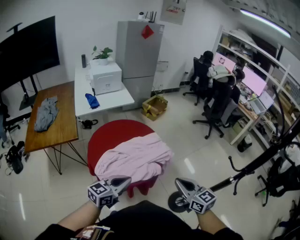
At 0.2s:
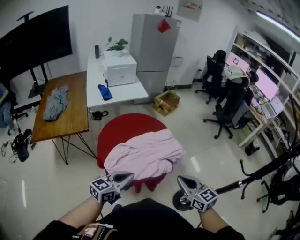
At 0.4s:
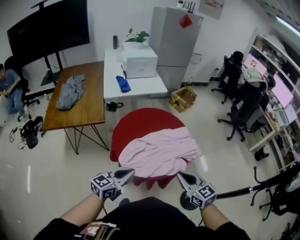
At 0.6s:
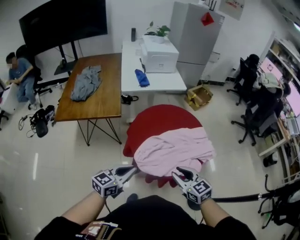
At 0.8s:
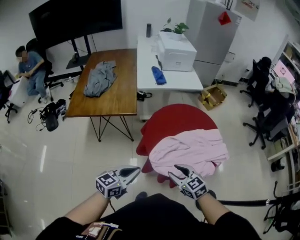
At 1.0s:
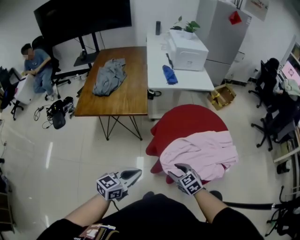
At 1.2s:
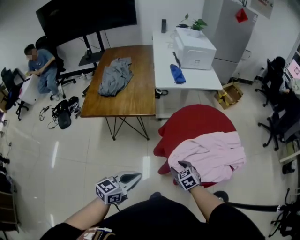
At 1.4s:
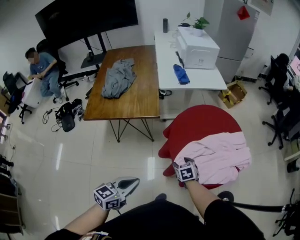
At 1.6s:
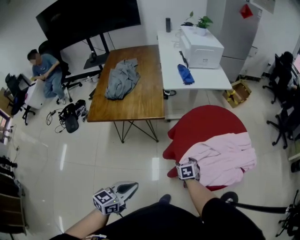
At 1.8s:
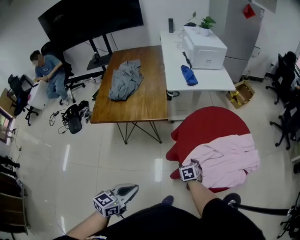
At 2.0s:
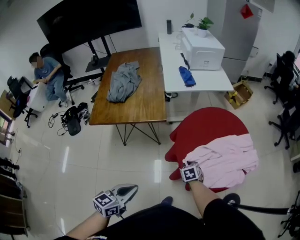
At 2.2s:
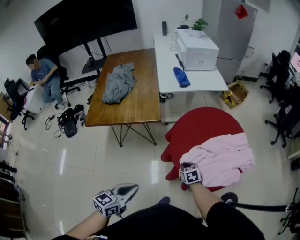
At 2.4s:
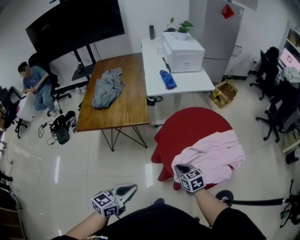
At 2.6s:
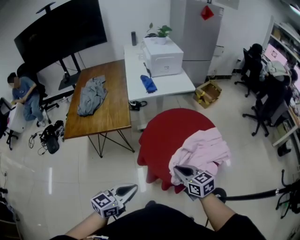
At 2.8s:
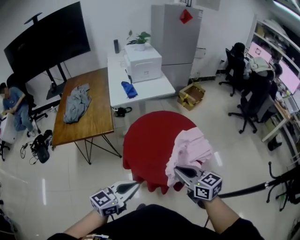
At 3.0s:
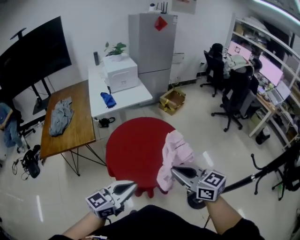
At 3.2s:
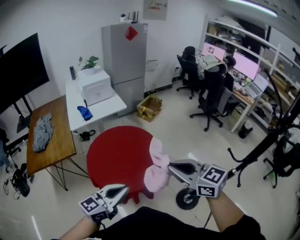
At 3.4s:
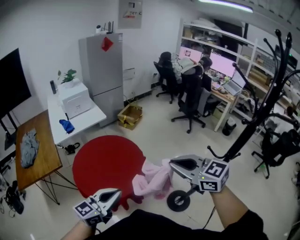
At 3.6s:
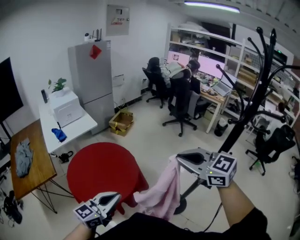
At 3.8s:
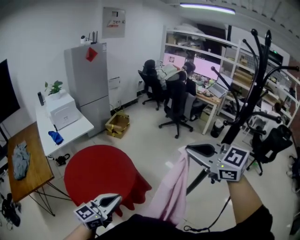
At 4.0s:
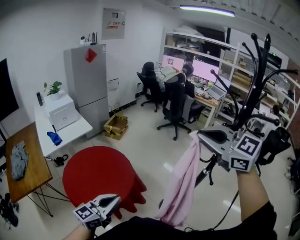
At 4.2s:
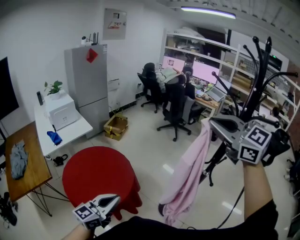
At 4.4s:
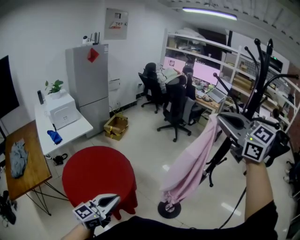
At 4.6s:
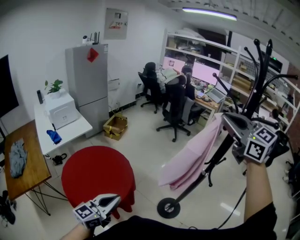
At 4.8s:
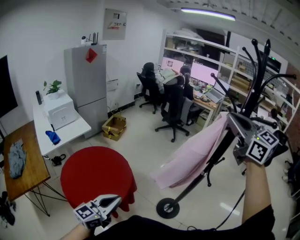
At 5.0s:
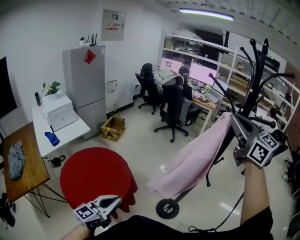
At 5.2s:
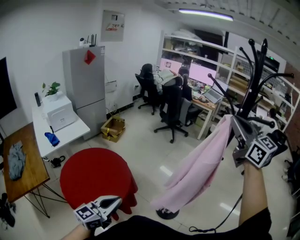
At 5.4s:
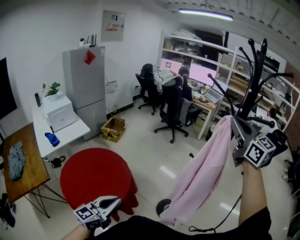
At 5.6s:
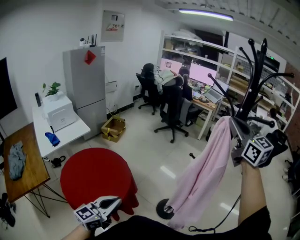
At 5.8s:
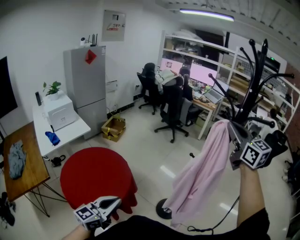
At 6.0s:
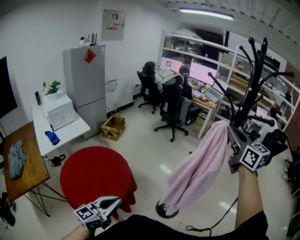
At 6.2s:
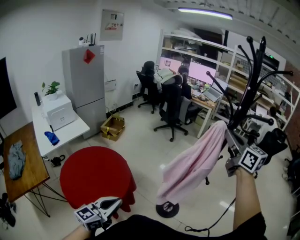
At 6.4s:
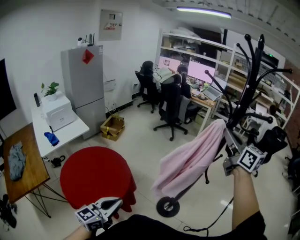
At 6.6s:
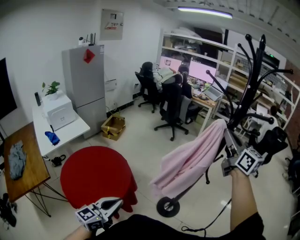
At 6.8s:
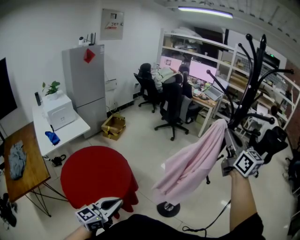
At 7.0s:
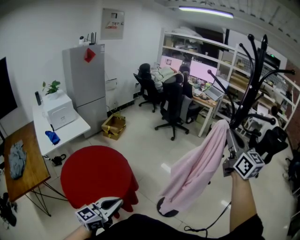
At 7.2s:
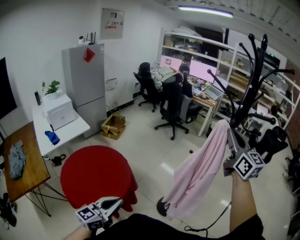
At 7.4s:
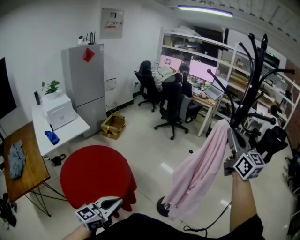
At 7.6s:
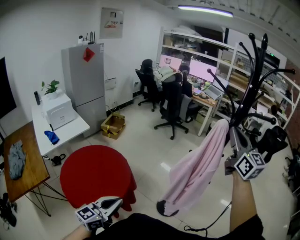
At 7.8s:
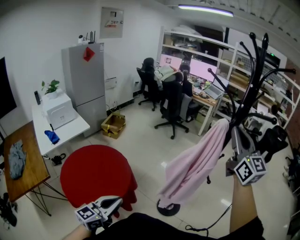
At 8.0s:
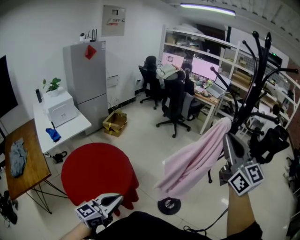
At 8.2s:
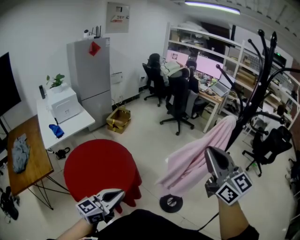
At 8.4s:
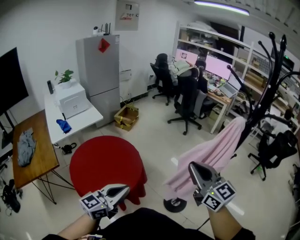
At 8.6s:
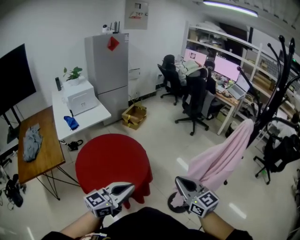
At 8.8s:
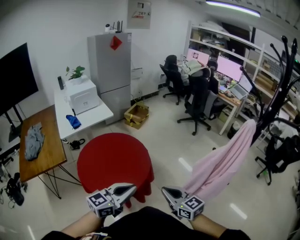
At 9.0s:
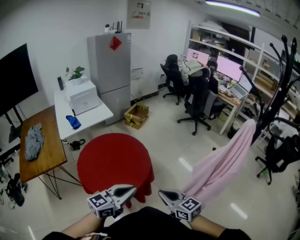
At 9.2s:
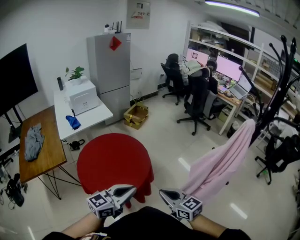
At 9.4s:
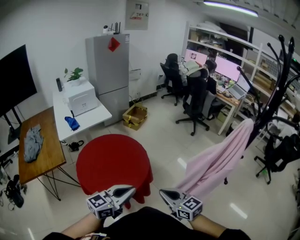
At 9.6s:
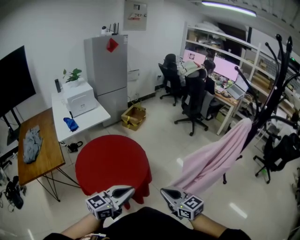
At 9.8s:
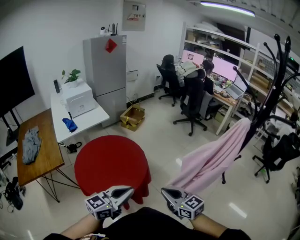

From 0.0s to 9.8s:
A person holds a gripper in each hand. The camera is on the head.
From 0.0s to 1.4s: The right gripper heads to the left, downward and forward, covering about 50 cm, tilts its fingers some 40 degrees downward, and opens its fingers; the left gripper travels to the left by roughly 35 cm, and changes its angle by some 30 degrees.
From 1.4s to 2.8s: The right gripper is displaced upward and to the right by some 35 cm, tips its fingers upward by roughly 30 degrees, and closes its fingers; the left gripper is displaced to the right and upward by about 20 cm, and changes its angle by approximately 20 degrees.
From 2.8s to 4.2s: The left gripper changes place by roughly 25 cm, and turns by some 30 degrees, while the right gripper changes place by approximately 50 cm, and changes its angle by some 50 degrees.
From 4.2s to 5.6s: The right gripper travels to the right by roughly 15 cm, and swivels some 30 degrees.
From 5.6s to 7.0s: The right gripper is displaced downward by roughly 5 cm.
From 7.0s to 8.4s: The right gripper moves to the left, downward and backward, roughly 25 cm, and turns by about 30 degrees.
From 8.4s to 9.8s: The right gripper is displaced downward and to the left by approximately 20 cm, and rotates approximately 20 degrees.

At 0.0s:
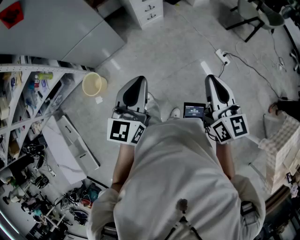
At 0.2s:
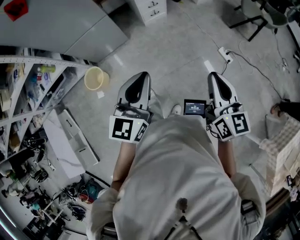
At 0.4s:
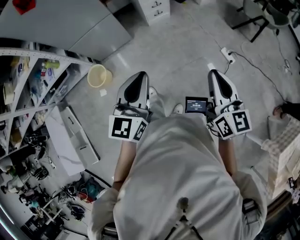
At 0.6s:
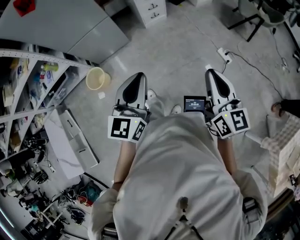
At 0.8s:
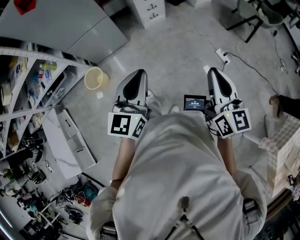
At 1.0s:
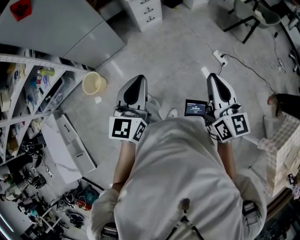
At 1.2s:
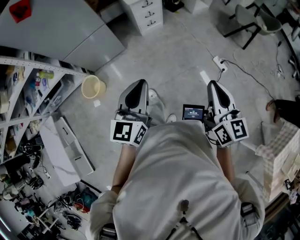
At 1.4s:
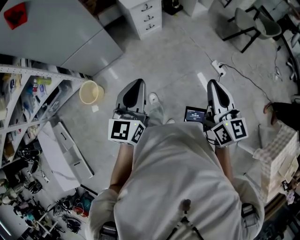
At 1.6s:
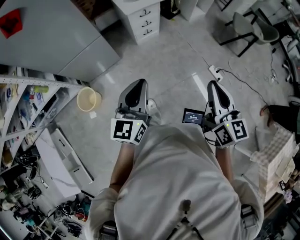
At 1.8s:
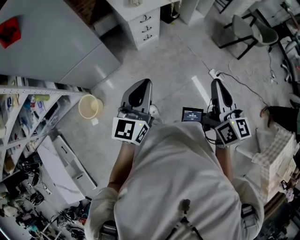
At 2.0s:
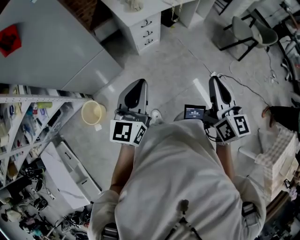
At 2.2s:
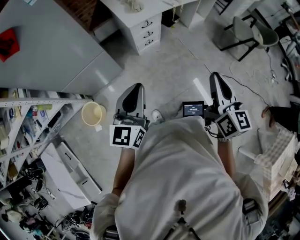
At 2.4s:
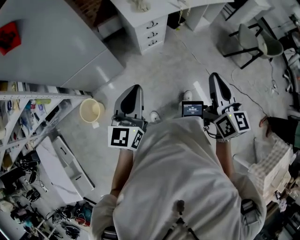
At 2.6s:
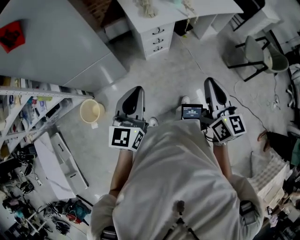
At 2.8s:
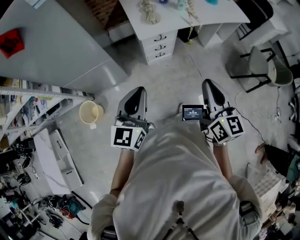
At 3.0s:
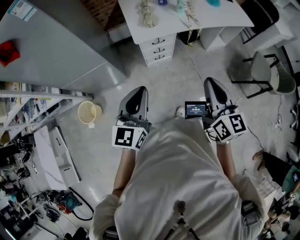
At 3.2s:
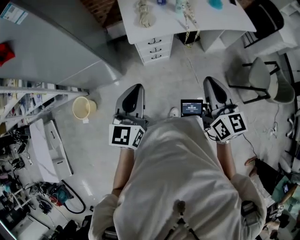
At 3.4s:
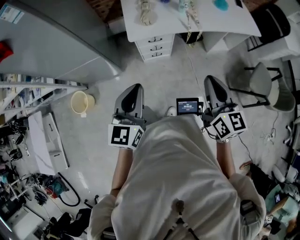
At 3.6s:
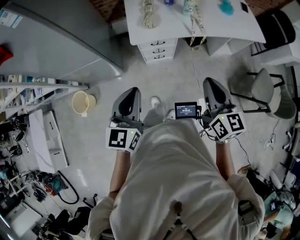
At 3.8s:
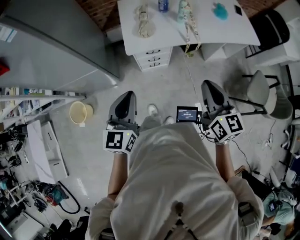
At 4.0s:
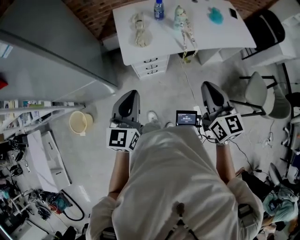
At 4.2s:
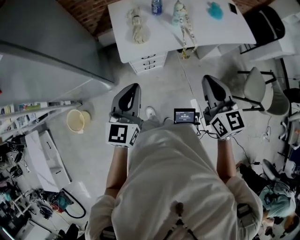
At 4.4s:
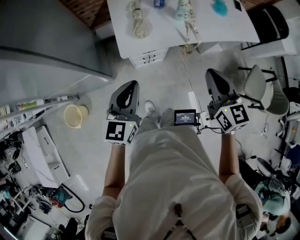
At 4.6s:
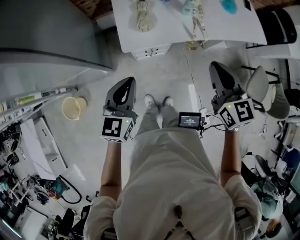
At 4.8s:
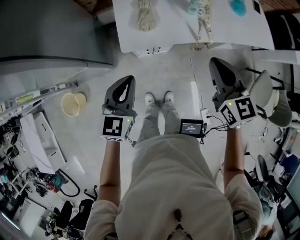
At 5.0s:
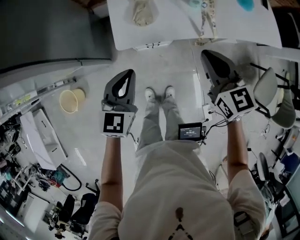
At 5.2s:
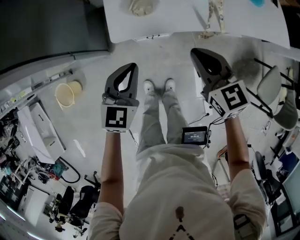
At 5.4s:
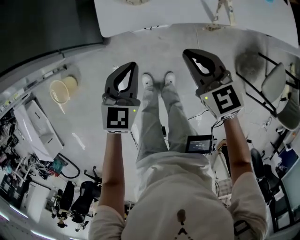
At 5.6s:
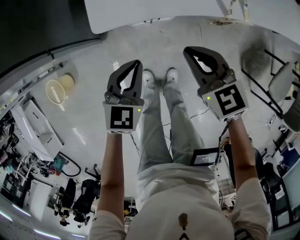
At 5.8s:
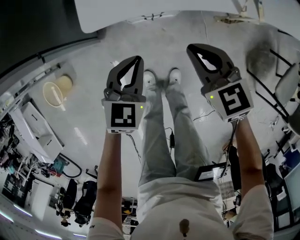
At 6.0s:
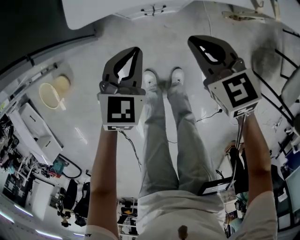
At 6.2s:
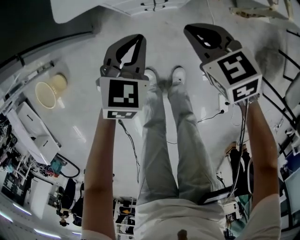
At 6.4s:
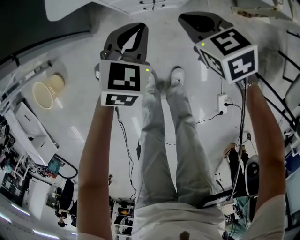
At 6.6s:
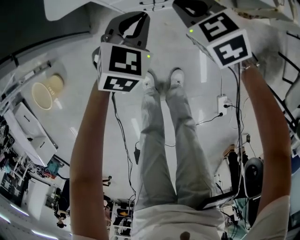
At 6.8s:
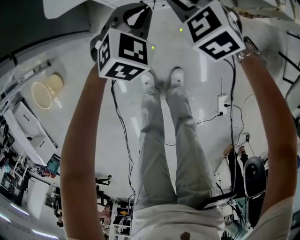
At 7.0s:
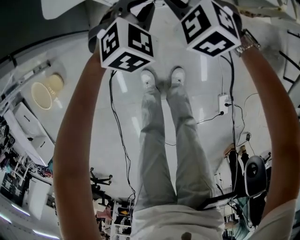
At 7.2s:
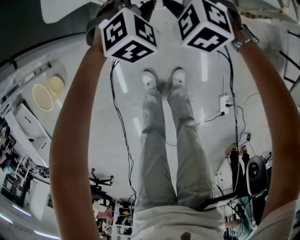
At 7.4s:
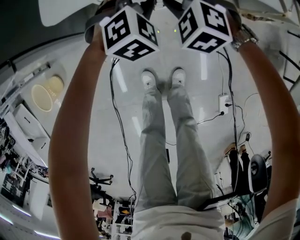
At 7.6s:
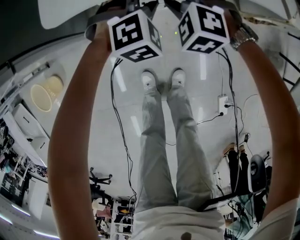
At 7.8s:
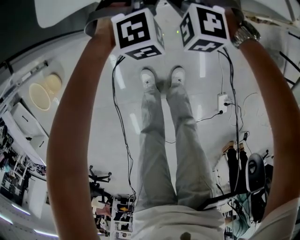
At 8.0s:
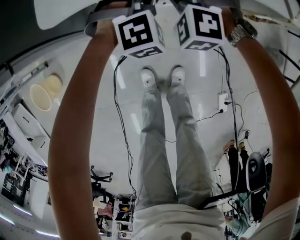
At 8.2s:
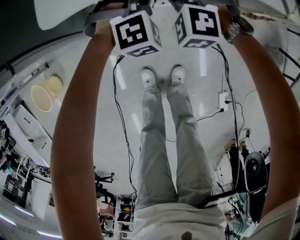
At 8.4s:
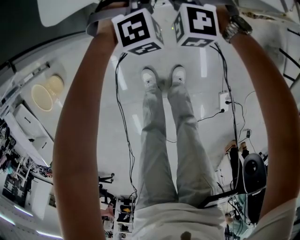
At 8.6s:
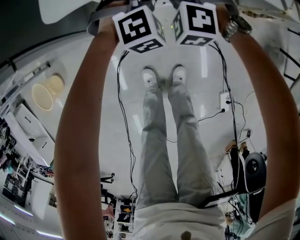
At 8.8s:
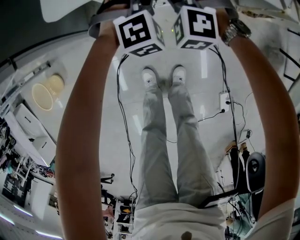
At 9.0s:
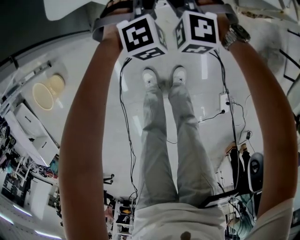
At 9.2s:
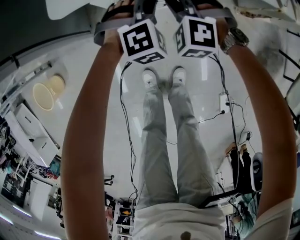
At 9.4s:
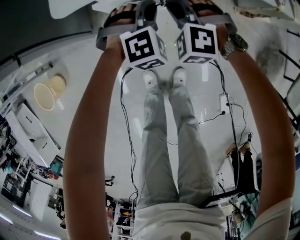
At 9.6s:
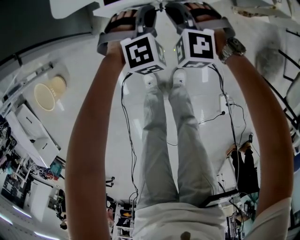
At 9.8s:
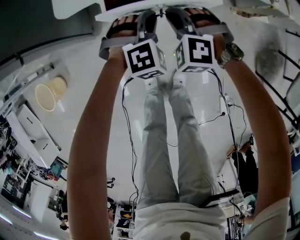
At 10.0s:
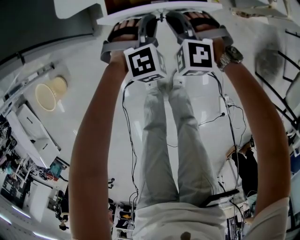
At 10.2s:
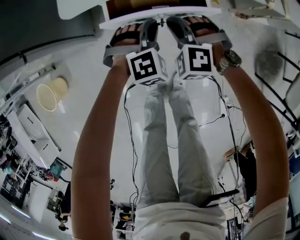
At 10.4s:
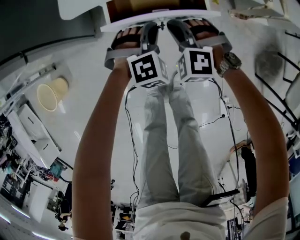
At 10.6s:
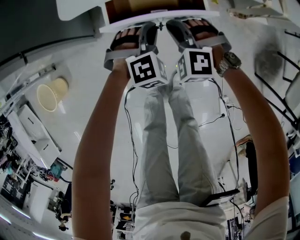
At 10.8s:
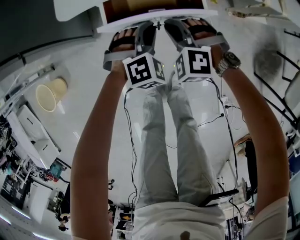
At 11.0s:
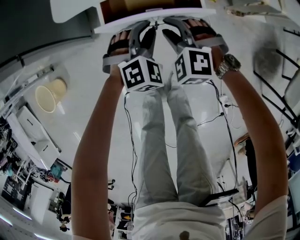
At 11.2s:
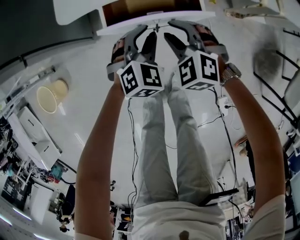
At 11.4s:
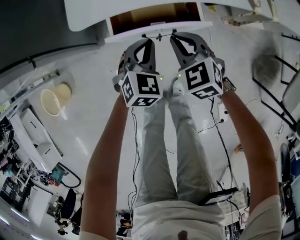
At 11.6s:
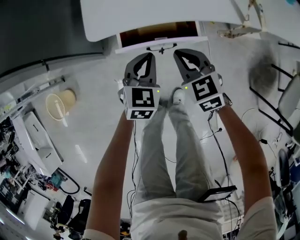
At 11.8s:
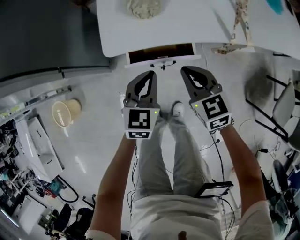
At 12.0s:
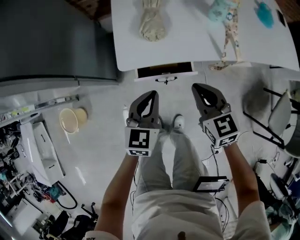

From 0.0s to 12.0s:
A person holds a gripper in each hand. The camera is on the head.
From 0.0s to 1.6s: The two grippers go some 10 cm forward.
From 1.6s to 3.0s: The two grippers go some 30 cm forward.
From 3.0s to 4.4s: Both grippers move forward, approximately 25 cm.
From 4.4s to 6.0s: The two grippers go approximately 40 cm downward. The right gripper changes its angle by about 30 degrees. The left gripper rotates some 30 degrees.
From 6.0s to 7.6s: The left gripper travels forward, downward and to the right by roughly 20 cm, rotates around the line of its fingers by about 50 degrees, clockwise from behind, and opens up. Meanwhile the right gripper shifts approximately 20 cm downward and forward, twists about 50 degrees counterclockwise, seen from behind, and opens up.
From 7.6s to 9.0s: The right gripper closes. The left gripper closes up.
From 9.0s to 10.4s: Both grippers travel together backward, some 10 cm.
From 10.4s to 12.0s: Both grippers travel together upward, approximately 30 cm. The left gripper twists about 60 degrees counterclockwise, seen from behind, while the right gripper rotates around the line of its fingers by roughly 60 degrees, clockwise from behind, and opens, then closes once more.

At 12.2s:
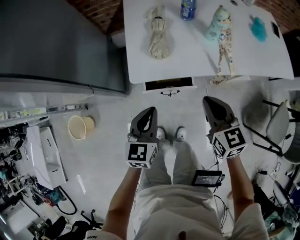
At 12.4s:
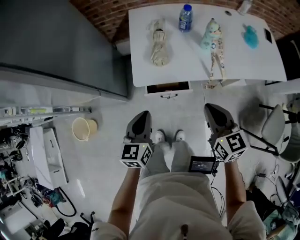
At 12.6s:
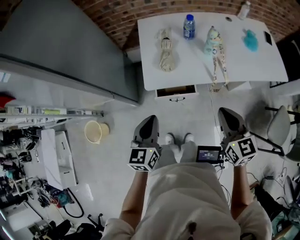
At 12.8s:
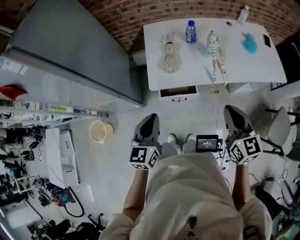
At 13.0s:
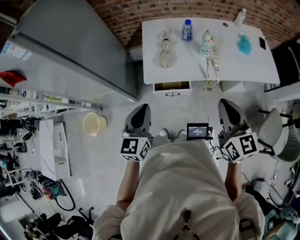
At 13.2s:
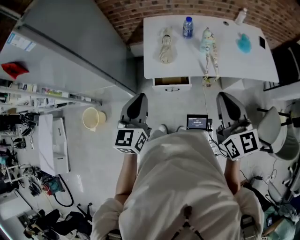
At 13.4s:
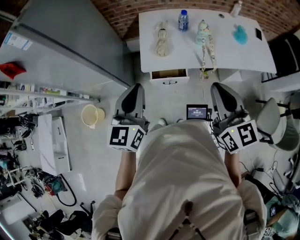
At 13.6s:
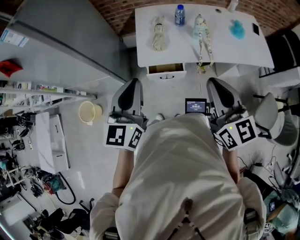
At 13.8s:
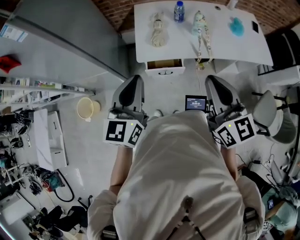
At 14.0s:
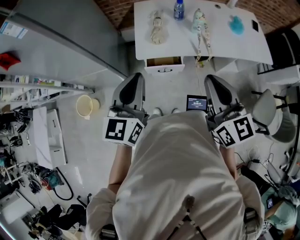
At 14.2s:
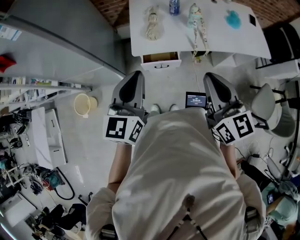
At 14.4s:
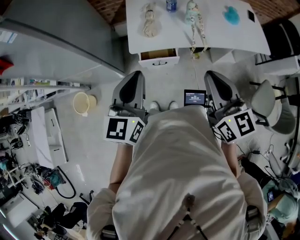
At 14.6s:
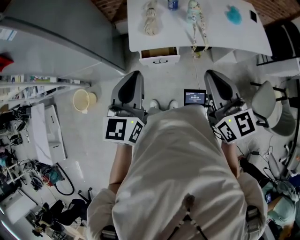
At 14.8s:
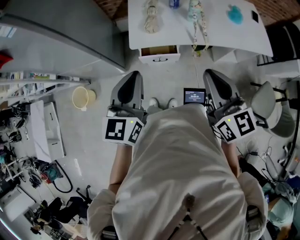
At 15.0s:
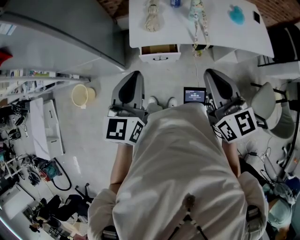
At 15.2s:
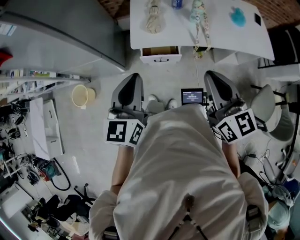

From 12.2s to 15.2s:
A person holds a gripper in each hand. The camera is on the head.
From 12.2s to 13.8s: The right gripper shifts approximately 35 cm upward and backward, and turns by roughly 20 degrees. The left gripper is displaced upward by approximately 35 cm, and swivels some 20 degrees.
From 13.8s to 15.2s: The left gripper changes place by about 5 cm.
